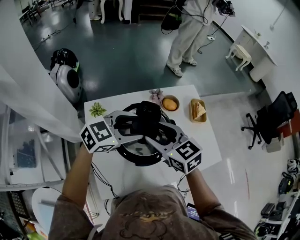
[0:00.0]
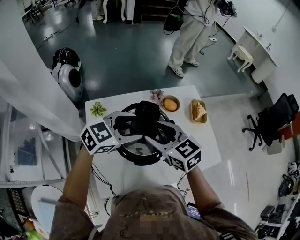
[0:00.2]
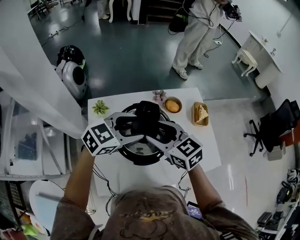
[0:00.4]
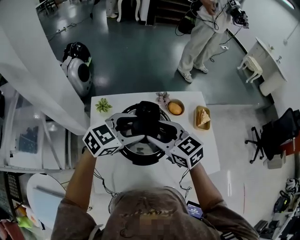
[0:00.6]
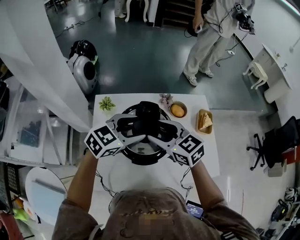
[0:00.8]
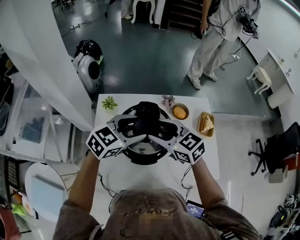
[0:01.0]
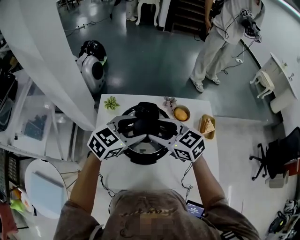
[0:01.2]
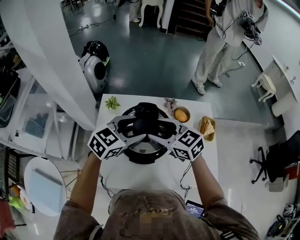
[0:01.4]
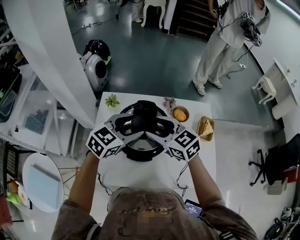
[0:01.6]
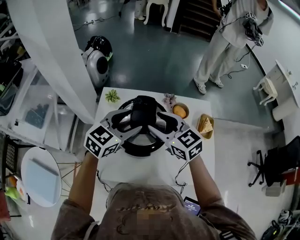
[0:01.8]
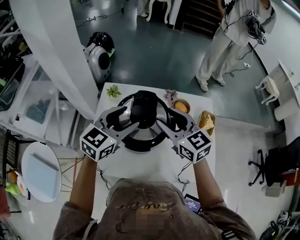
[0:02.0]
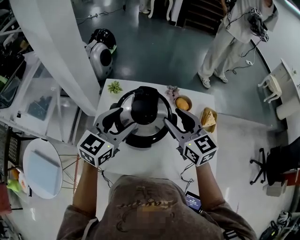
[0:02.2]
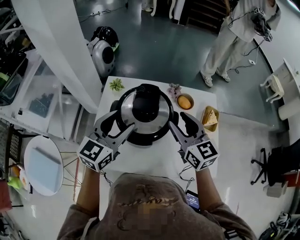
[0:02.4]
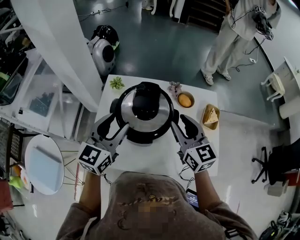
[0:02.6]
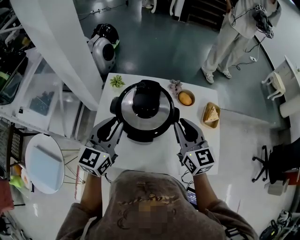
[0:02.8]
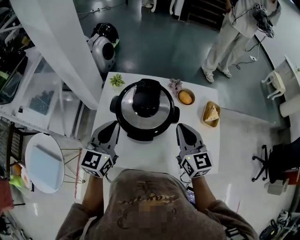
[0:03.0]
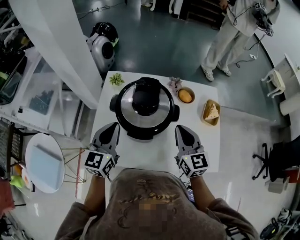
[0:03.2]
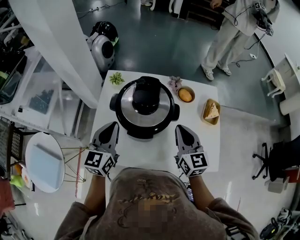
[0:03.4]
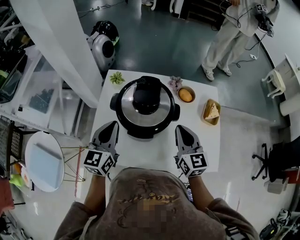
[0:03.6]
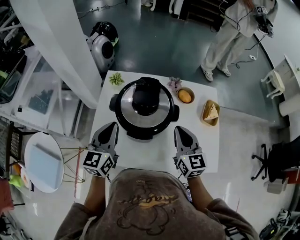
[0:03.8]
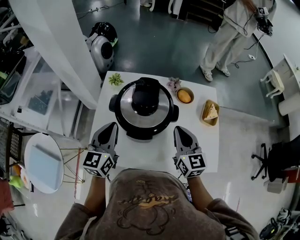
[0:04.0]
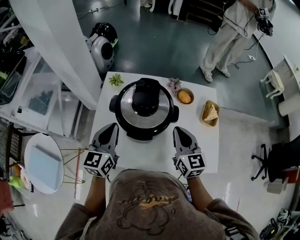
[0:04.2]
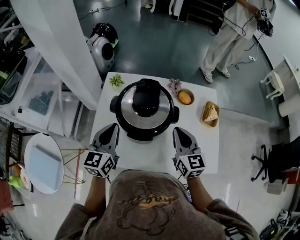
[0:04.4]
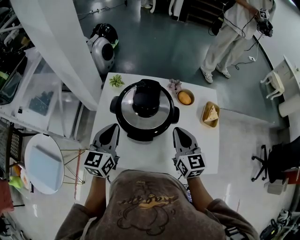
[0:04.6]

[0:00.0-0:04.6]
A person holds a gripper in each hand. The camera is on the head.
0:00.0 to 0:01.6: The right gripper rotates approximately 30 degrees, while the left gripper rotates some 30 degrees.
0:01.6 to 0:03.0: The left gripper travels backward and to the left by about 10 cm, turns by about 40 degrees, and closes up; the right gripper moves to the right and backward, roughly 15 cm, rotates about 30 degrees, and closes.
0:03.0 to 0:04.6: The grippers make only small movements.

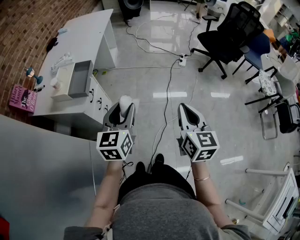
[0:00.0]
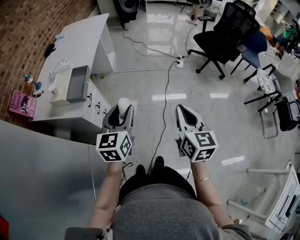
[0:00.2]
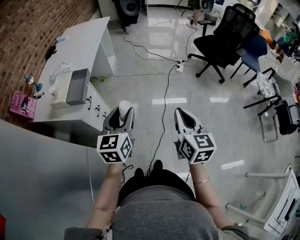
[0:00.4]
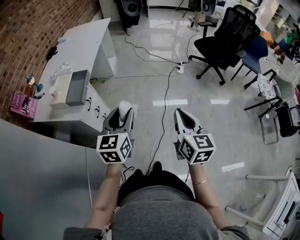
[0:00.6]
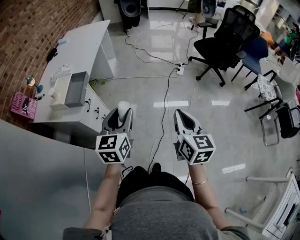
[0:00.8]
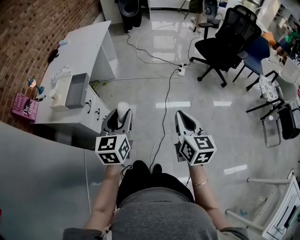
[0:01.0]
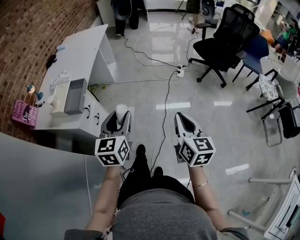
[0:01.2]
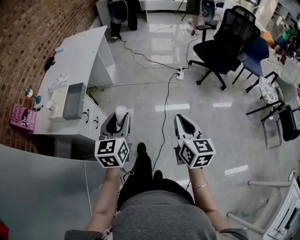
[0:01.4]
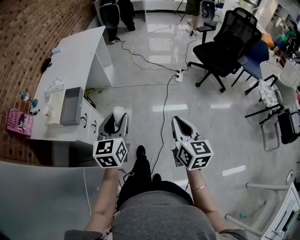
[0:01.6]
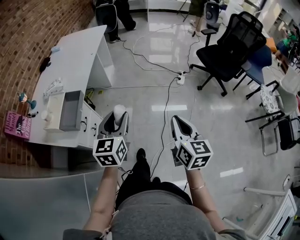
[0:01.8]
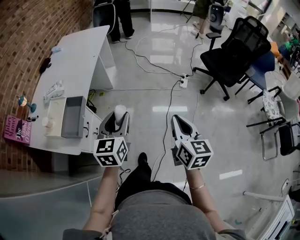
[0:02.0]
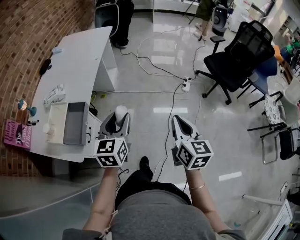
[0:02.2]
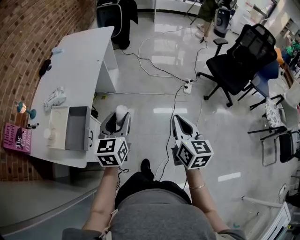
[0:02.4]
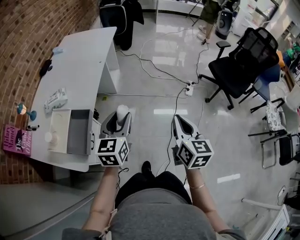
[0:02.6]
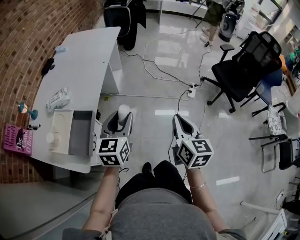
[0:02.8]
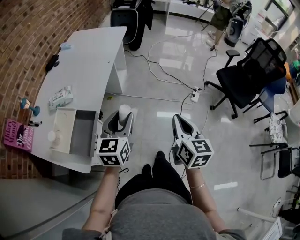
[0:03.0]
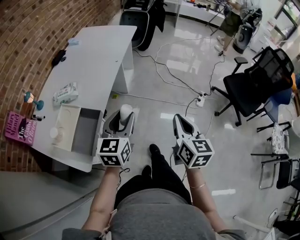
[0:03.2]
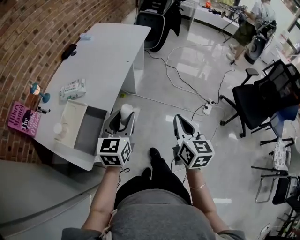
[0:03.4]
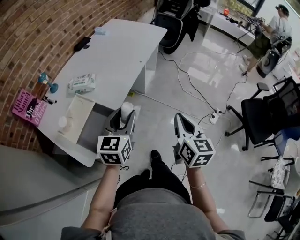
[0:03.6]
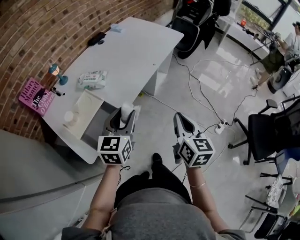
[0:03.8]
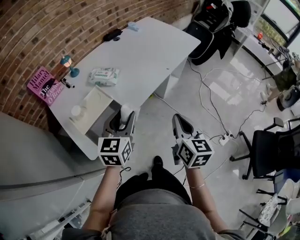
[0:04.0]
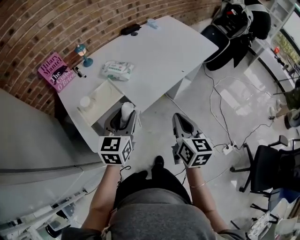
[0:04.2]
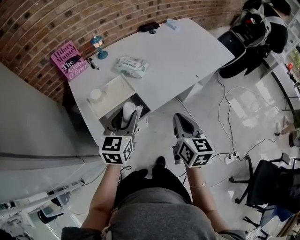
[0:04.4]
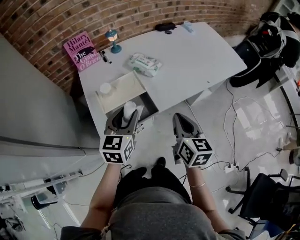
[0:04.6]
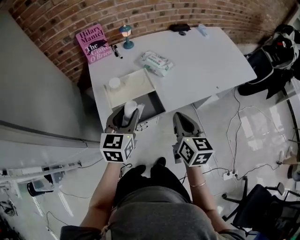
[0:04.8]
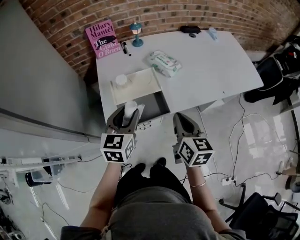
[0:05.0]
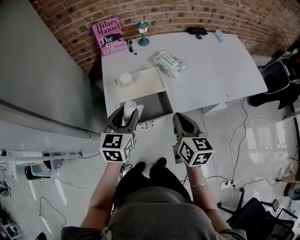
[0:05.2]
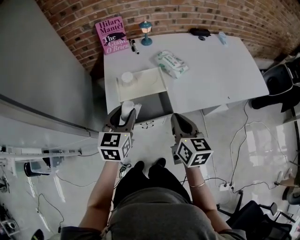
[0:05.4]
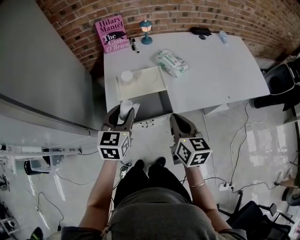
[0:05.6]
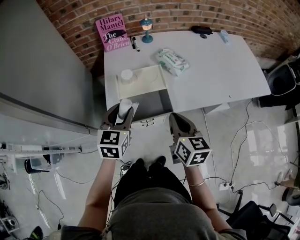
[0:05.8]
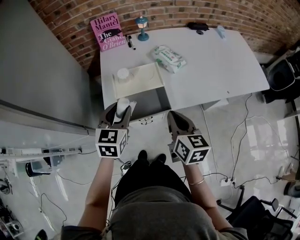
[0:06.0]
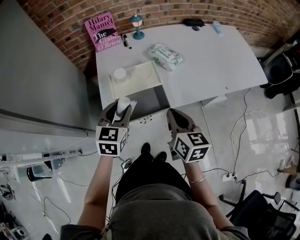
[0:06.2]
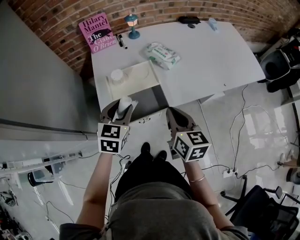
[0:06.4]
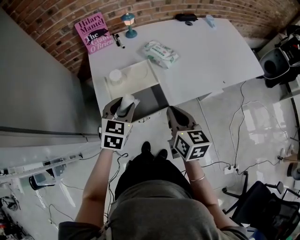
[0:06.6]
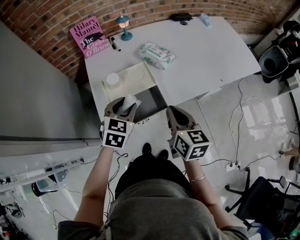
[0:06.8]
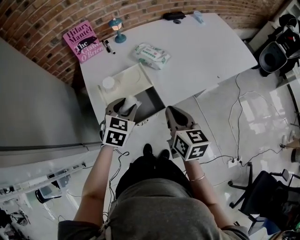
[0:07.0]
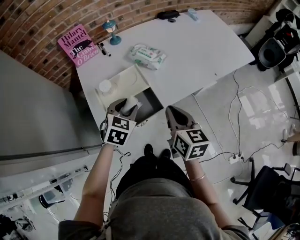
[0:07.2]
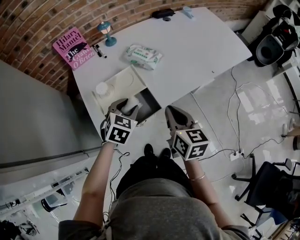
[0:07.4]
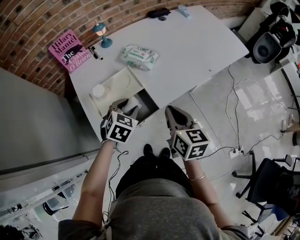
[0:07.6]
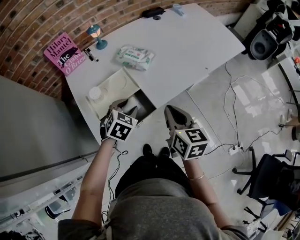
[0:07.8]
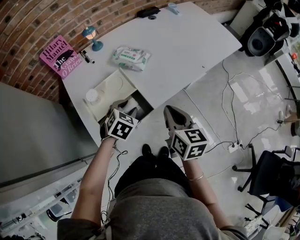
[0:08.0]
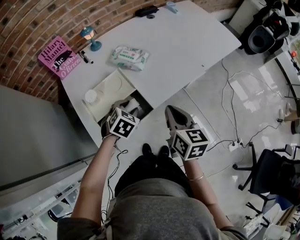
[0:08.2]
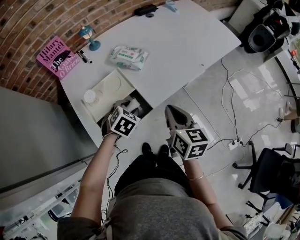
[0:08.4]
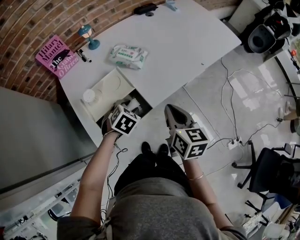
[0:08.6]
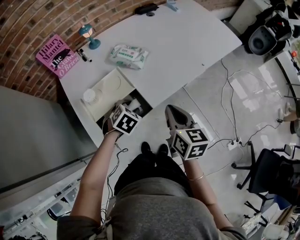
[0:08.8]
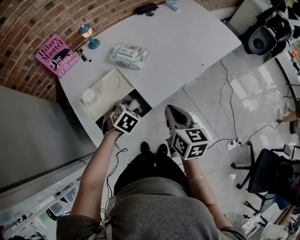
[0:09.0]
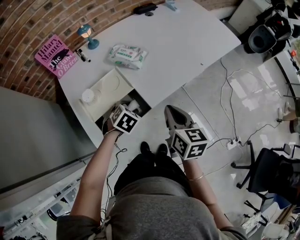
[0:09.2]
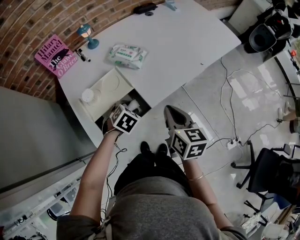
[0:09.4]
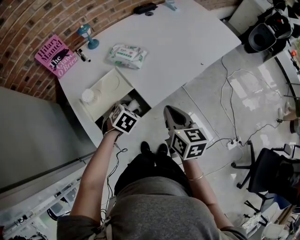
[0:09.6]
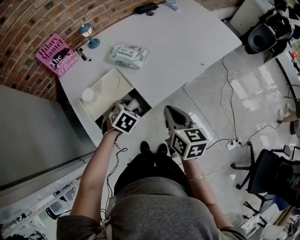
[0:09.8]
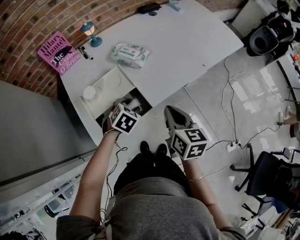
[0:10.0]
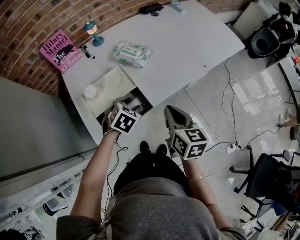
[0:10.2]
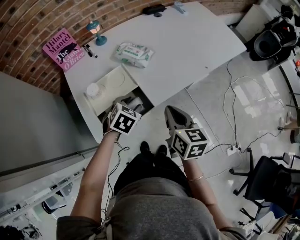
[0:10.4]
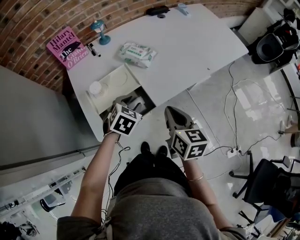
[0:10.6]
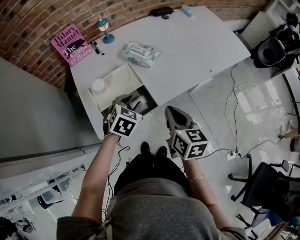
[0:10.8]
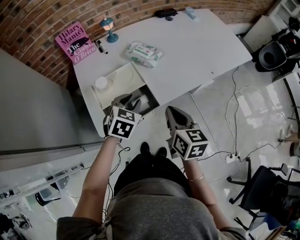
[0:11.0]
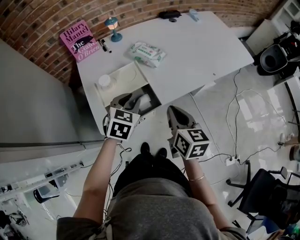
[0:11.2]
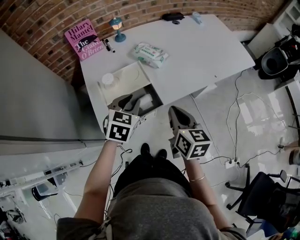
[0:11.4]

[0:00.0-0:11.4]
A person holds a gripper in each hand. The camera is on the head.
0:00.0 to 0:01.4: The right gripper shifts roughly 10 cm to the right and forward. Meanwhile the left gripper goes about 10 cm forward and to the right.
0:01.4 to 0:02.8: The two grippers go approximately 30 cm forward and to the left.
0:02.8 to 0:04.2: The left gripper ends up approximately 20 cm from where it was, and rotates approximately 40 degrees, while the right gripper ends up some 30 cm from where it was, and changes its angle by about 40 degrees.
0:04.2 to 0:05.6: The right gripper changes place by about 15 cm, and changes its angle by approximately 30 degrees, while the left gripper moves roughly 15 cm, and turns by some 30 degrees.
0:05.6 to 0:07.2: The left gripper goes some 10 cm downward, to the right and forward, and changes its angle by about 40 degrees.
0:07.2 to 0:08.6: The left gripper goes some 10 cm downward and to the right, and changes its angle by roughly 20 degrees.
0:08.6 to 0:10.0: There are only small adjustments of the grippers.
0:10.0 to 0:11.4: The left gripper is displaced upward by approximately 10 cm, turns by about 30 degrees, and closes its fingers.

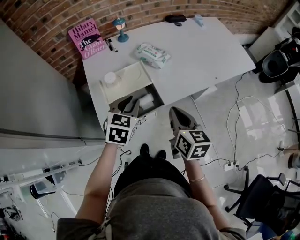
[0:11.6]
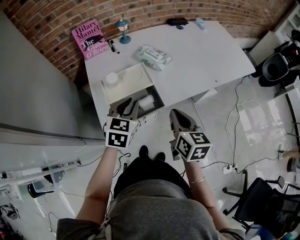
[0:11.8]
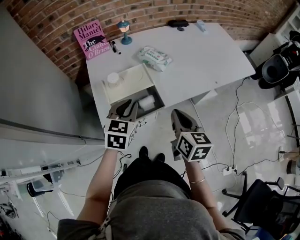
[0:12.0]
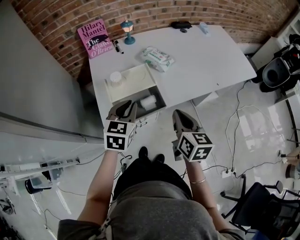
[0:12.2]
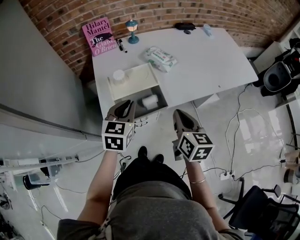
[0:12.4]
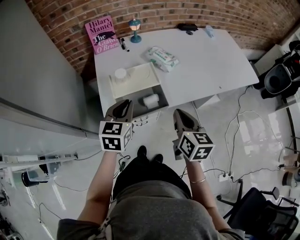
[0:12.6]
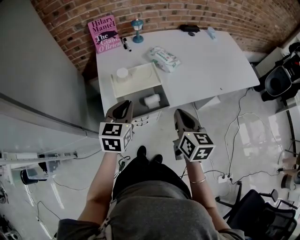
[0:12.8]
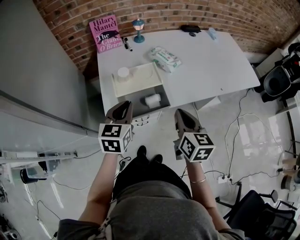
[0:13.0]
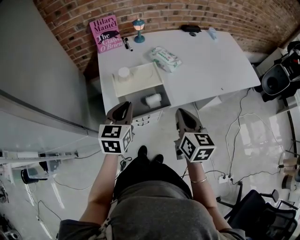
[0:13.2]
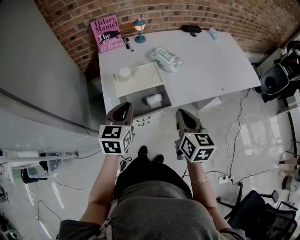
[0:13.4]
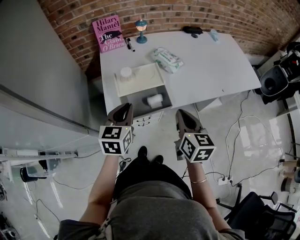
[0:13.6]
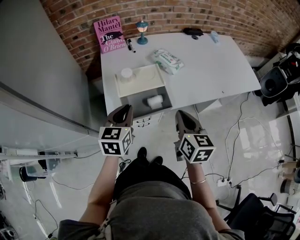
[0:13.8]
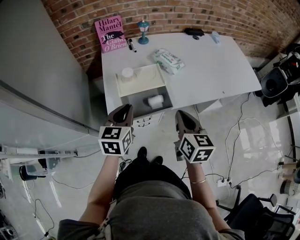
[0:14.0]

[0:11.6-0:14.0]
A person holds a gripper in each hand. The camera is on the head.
0:11.6 to 0:12.8: The left gripper goes some 5 cm to the left.
0:12.8 to 0:14.0: The grippers move only a little.

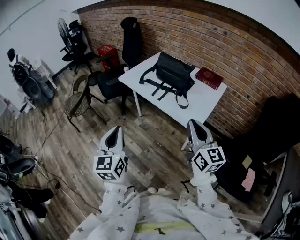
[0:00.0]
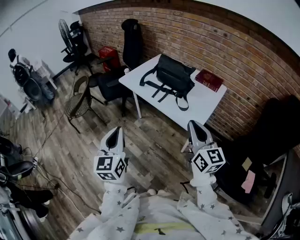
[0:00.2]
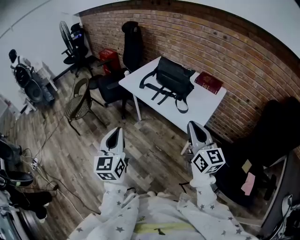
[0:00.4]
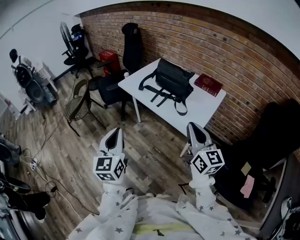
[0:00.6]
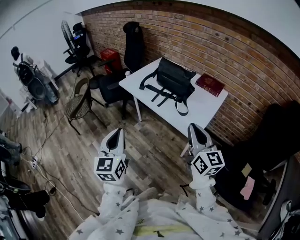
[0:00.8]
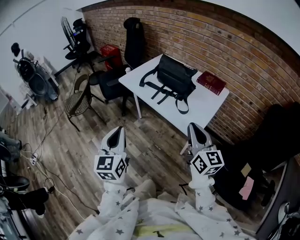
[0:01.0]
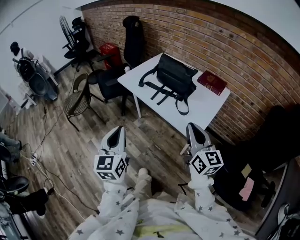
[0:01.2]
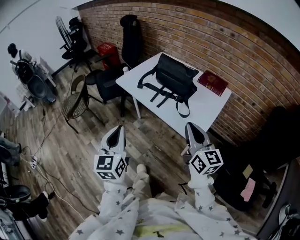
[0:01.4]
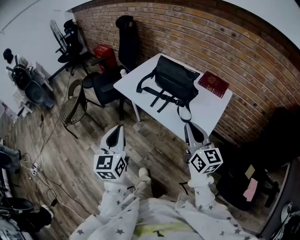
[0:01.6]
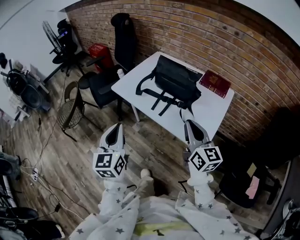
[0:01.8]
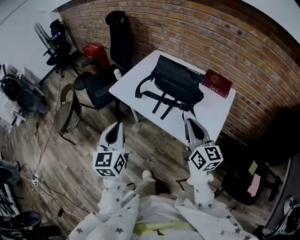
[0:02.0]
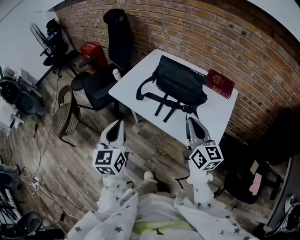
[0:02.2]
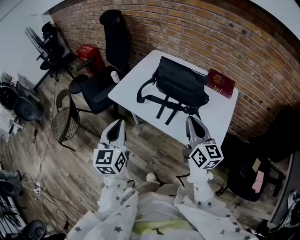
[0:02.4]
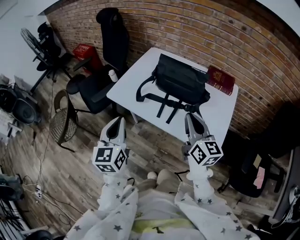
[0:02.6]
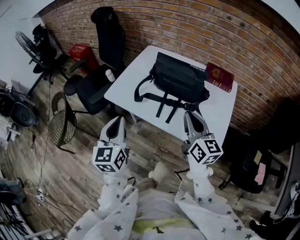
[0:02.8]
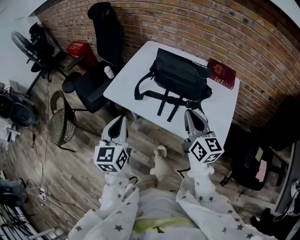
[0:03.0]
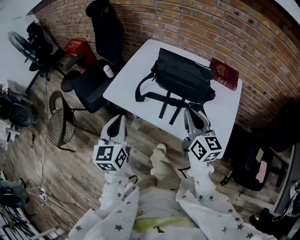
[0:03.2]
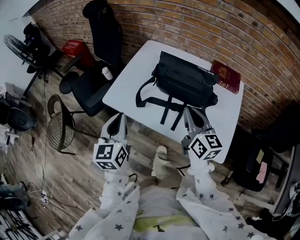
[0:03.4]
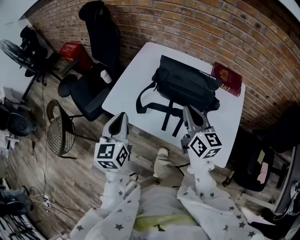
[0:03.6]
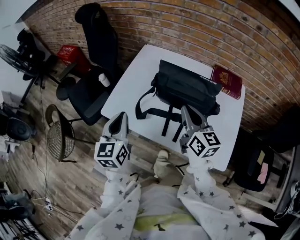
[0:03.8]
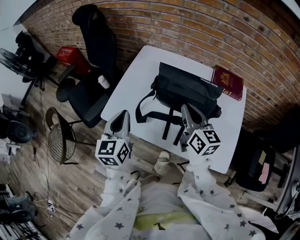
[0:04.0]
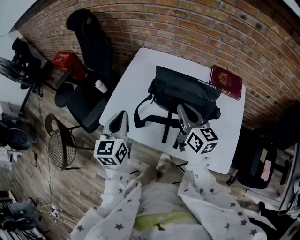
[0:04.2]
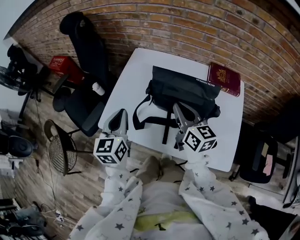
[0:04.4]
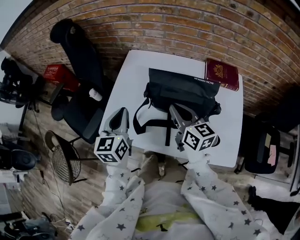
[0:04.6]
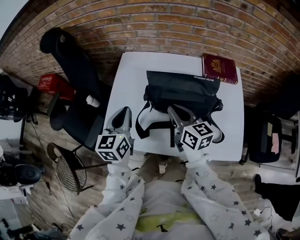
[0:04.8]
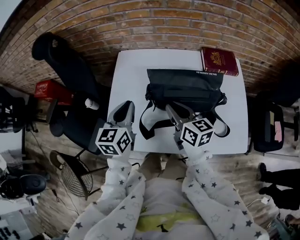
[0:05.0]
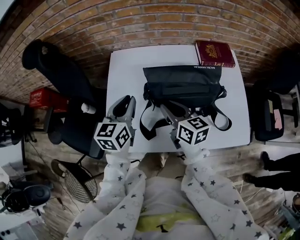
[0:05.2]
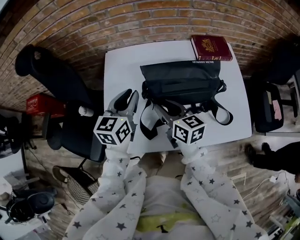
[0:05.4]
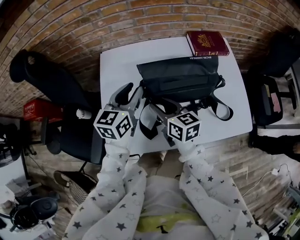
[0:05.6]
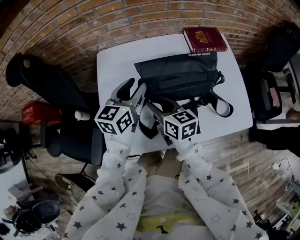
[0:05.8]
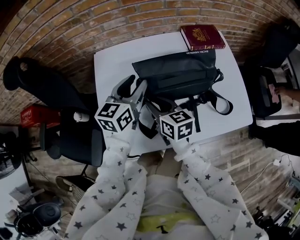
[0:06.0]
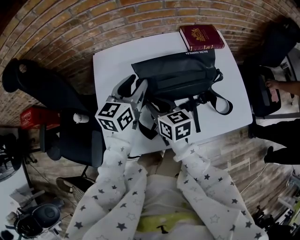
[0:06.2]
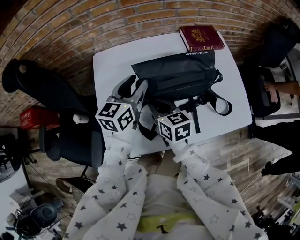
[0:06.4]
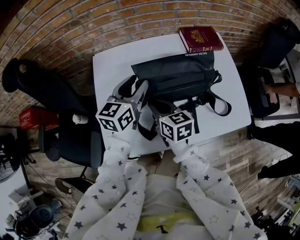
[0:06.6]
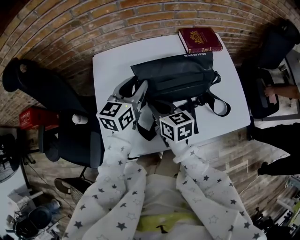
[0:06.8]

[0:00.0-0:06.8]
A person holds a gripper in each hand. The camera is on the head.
0:00.0 to 0:01.4: Both grippers travel together forward, roughly 10 cm.
0:01.4 to 0:02.8: Both grippers travel together forward, roughly 25 cm.
0:02.8 to 0:04.0: Both grippers travel together forward, some 20 cm.
0:04.0 to 0:05.4: The left gripper heads forward, covering about 20 cm, and rotates some 40 degrees, while the right gripper heads to the left, downward and forward, covering some 15 cm, and opens its fingers.
0:05.4 to 0:06.8: The left gripper shifts about 5 cm to the right; the right gripper closes its fingers.
